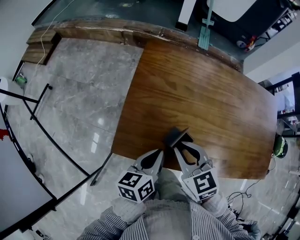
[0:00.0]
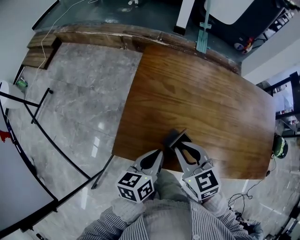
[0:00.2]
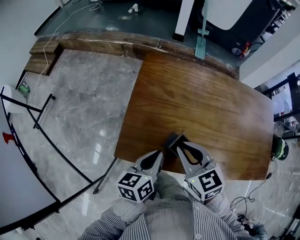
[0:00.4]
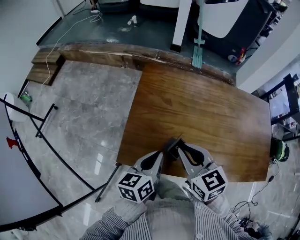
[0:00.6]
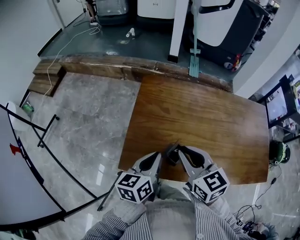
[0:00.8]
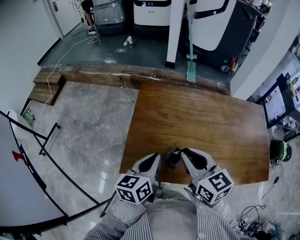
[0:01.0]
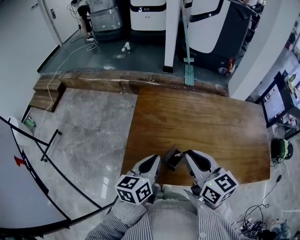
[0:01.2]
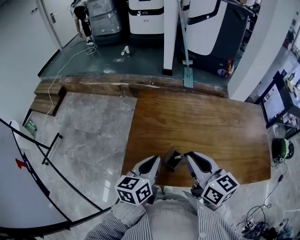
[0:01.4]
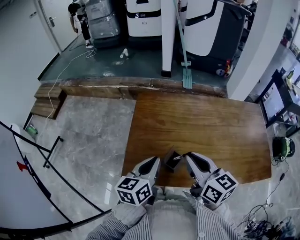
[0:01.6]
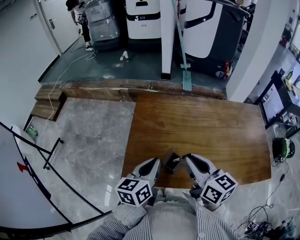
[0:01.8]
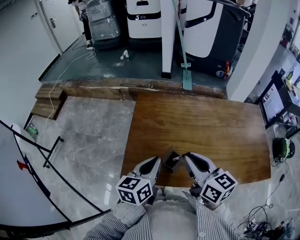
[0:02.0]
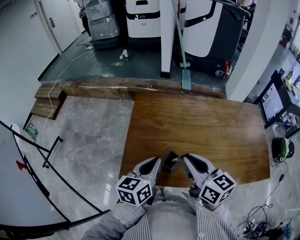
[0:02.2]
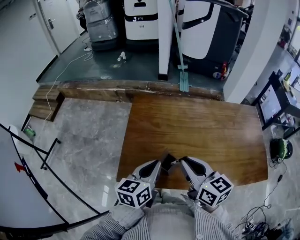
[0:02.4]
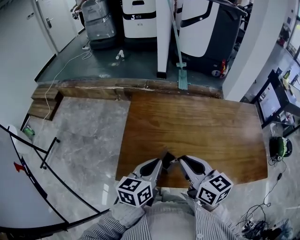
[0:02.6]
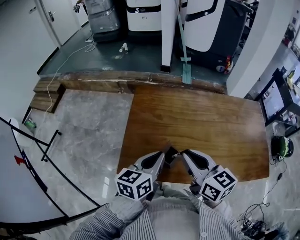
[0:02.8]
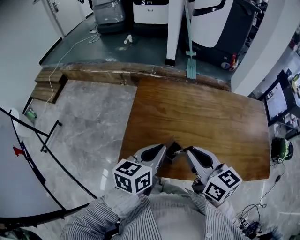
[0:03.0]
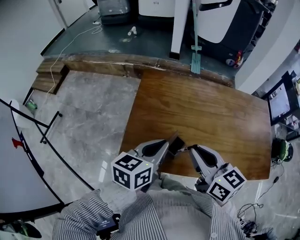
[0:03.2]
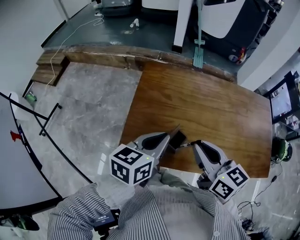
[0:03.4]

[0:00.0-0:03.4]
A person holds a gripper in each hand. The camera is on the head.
0:00.0 to 0:01.6: The right gripper travels upward and to the right by some 15 cm, and swivels approximately 40 degrees; the left gripper shifts about 10 cm upward.
0:01.6 to 0:03.4: The grippers stay close to where they were, moving slightly.

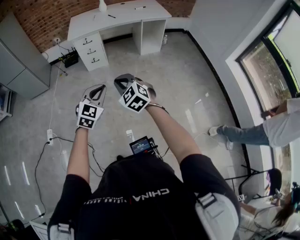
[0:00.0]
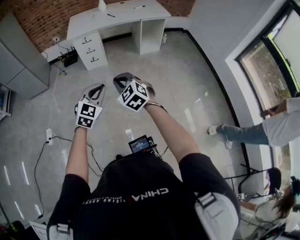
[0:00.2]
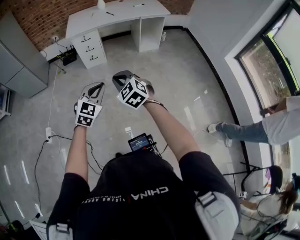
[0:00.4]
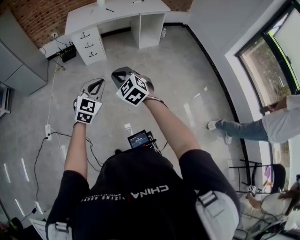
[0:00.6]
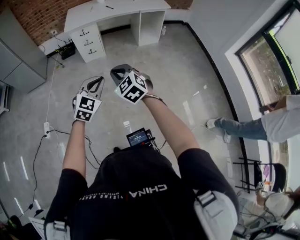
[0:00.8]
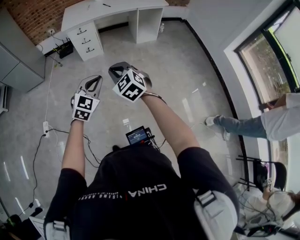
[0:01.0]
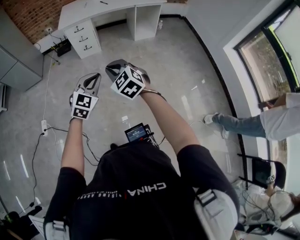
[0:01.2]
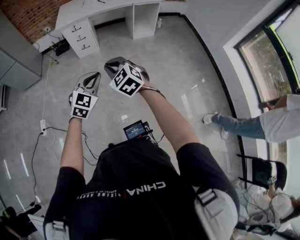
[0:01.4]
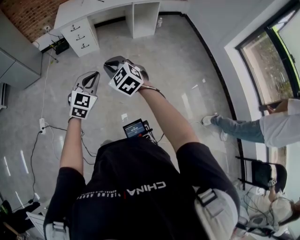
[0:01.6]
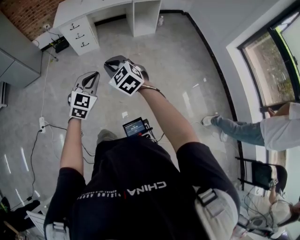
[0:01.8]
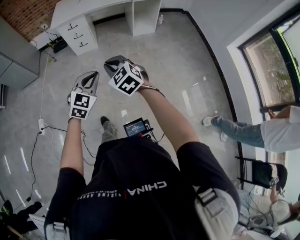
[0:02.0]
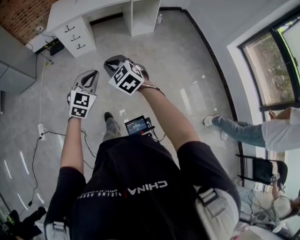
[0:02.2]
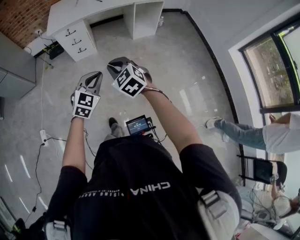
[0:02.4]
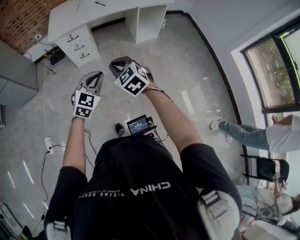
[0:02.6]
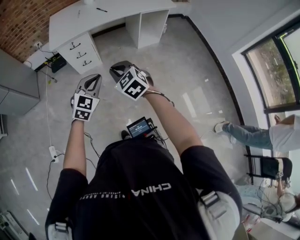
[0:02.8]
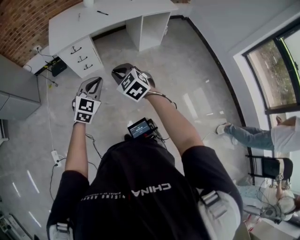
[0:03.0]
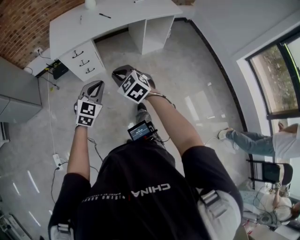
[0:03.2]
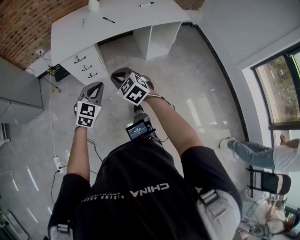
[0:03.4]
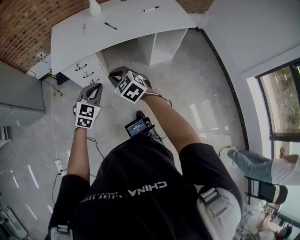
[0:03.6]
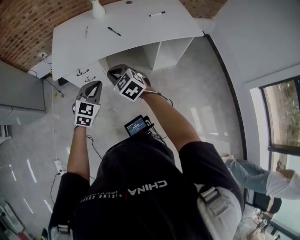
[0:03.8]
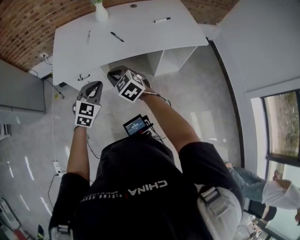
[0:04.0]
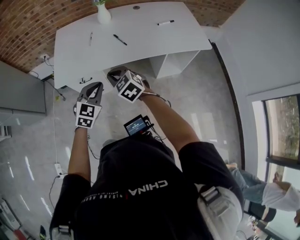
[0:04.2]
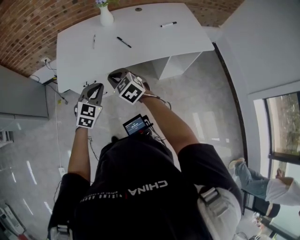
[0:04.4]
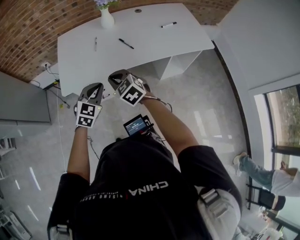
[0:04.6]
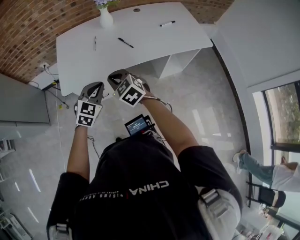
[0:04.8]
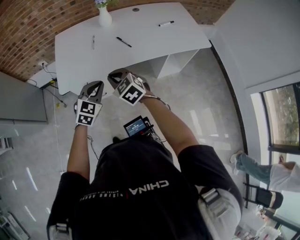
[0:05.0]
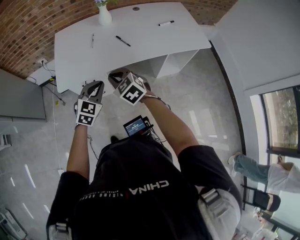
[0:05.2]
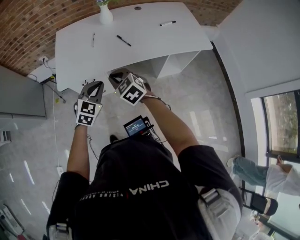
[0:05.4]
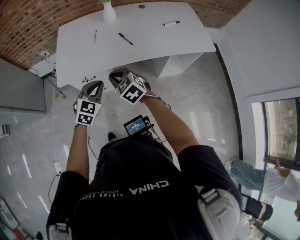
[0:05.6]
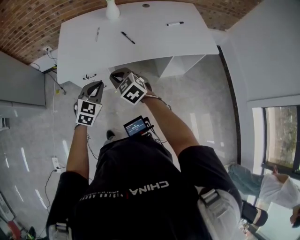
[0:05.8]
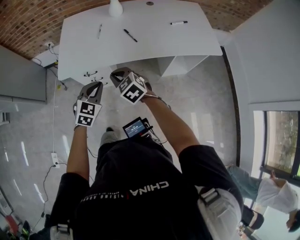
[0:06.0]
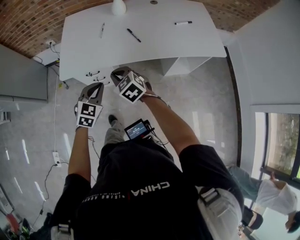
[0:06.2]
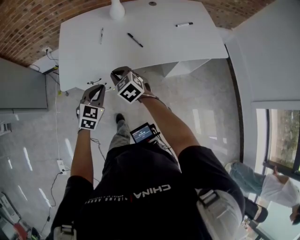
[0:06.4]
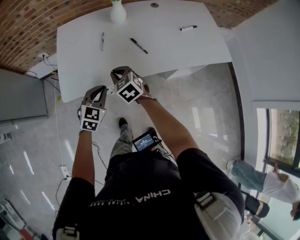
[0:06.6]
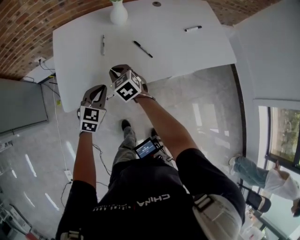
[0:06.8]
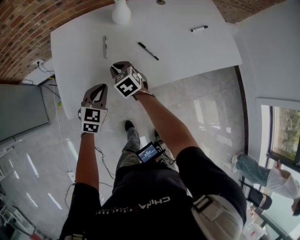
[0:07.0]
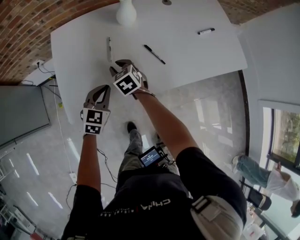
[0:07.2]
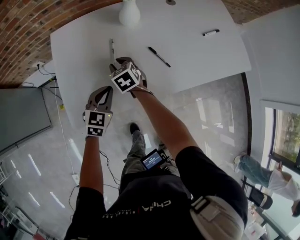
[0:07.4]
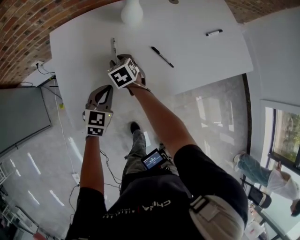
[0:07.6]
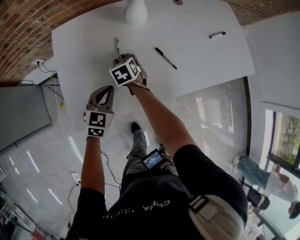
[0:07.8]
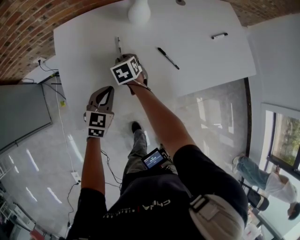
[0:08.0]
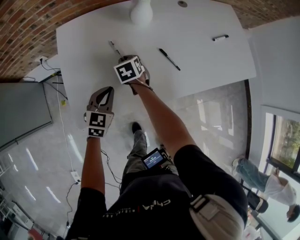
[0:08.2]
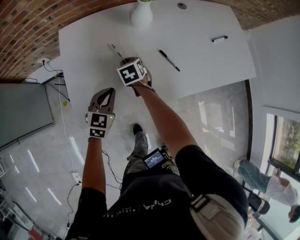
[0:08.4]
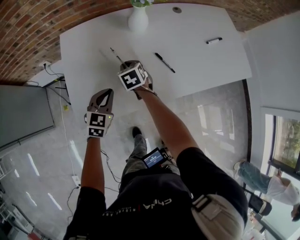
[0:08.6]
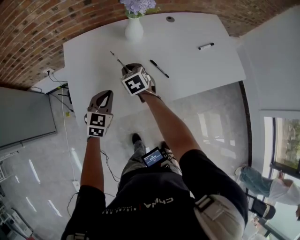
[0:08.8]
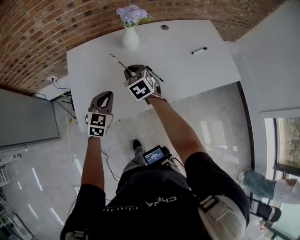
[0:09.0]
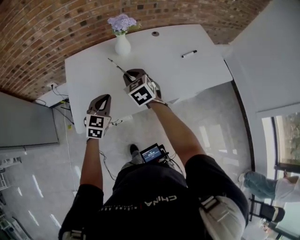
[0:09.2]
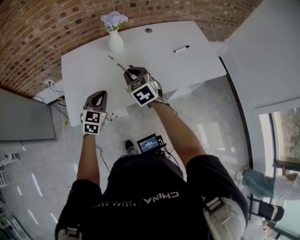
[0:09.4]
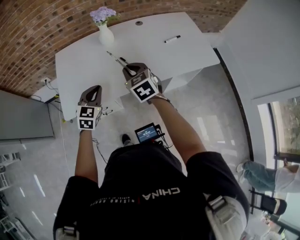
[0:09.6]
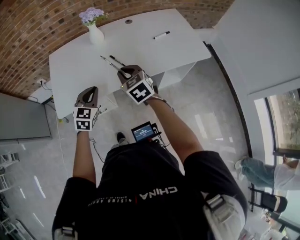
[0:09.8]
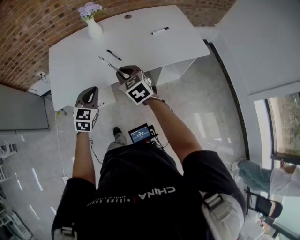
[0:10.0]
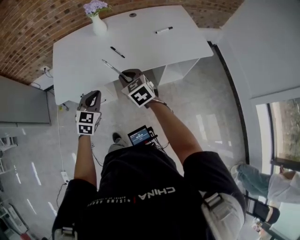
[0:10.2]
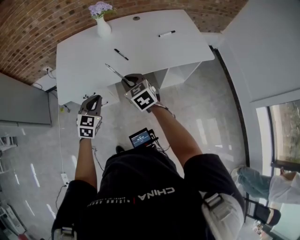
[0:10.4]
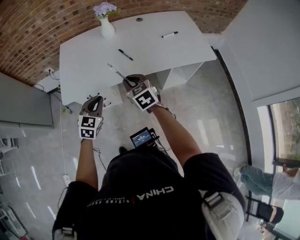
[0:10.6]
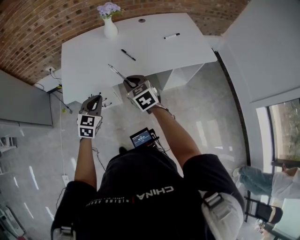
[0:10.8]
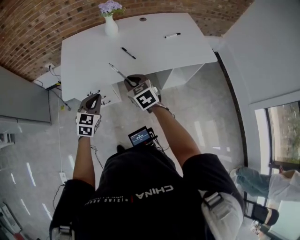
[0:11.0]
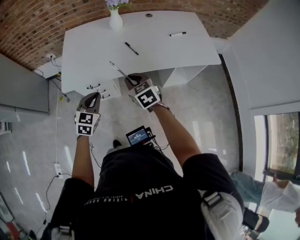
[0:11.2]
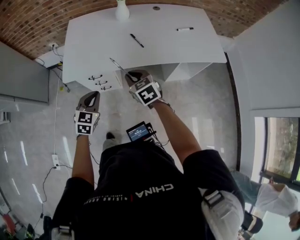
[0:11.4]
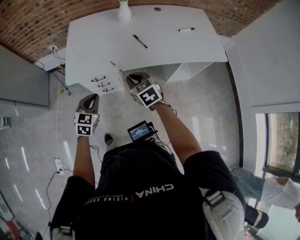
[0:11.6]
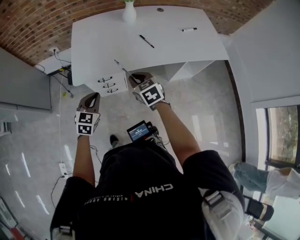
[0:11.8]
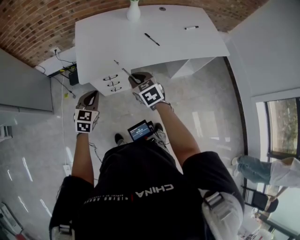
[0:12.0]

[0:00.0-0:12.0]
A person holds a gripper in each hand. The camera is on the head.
0:00.0 to 0:01.6: The two grippers go roughly 10 cm to the right and forward.
0:01.6 to 0:03.0: The right gripper moves forward, roughly 35 cm, while the left gripper shifts about 40 cm forward and to the left.
0:03.0 to 0:04.4: Both grippers are carried forward, roughly 50 cm.
0:04.4 to 0:06.0: There are only small adjustments of the grippers.
0:06.0 to 0:07.6: The left gripper travels forward by roughly 35 cm, while the right gripper travels forward and downward by roughly 50 cm, rotates about 30 degrees, and opens its fingers.
0:07.6 to 0:09.0: The right gripper travels upward and to the right by approximately 20 cm; the left gripper heads upward, covering about 10 cm.
0:09.0 to 0:10.4: Both grippers travel together backward and to the right, roughly 30 cm.
0:10.4 to 0:12.0: Both grippers move to the left, roughly 25 cm.

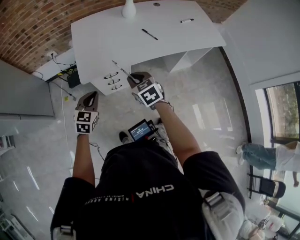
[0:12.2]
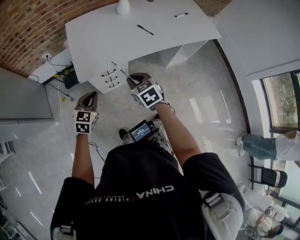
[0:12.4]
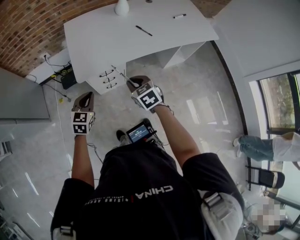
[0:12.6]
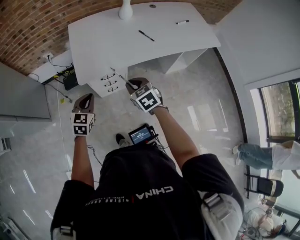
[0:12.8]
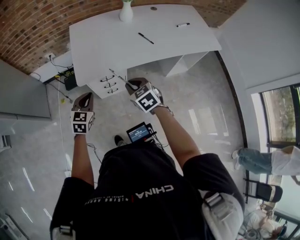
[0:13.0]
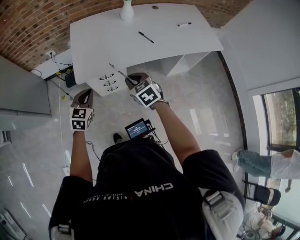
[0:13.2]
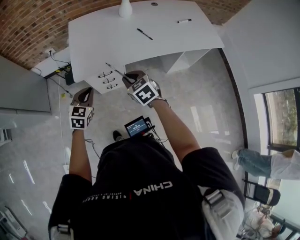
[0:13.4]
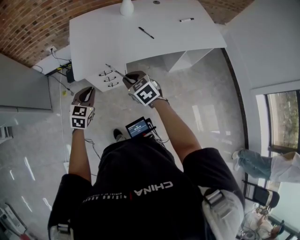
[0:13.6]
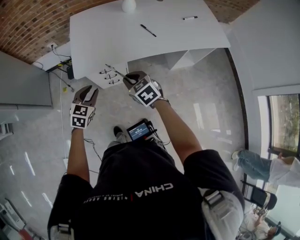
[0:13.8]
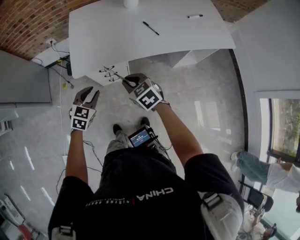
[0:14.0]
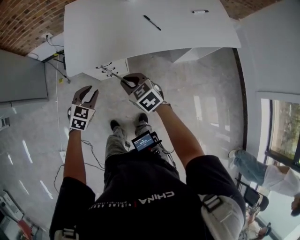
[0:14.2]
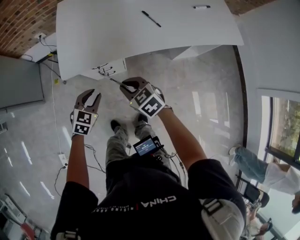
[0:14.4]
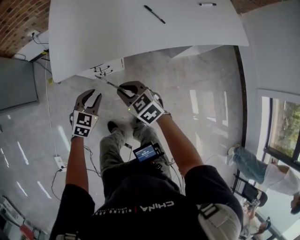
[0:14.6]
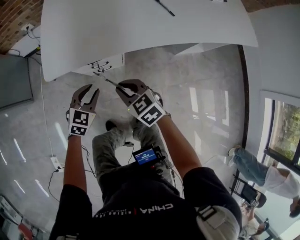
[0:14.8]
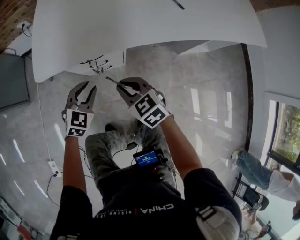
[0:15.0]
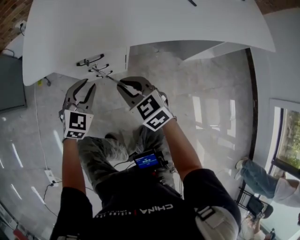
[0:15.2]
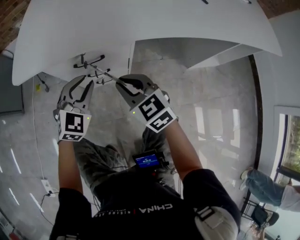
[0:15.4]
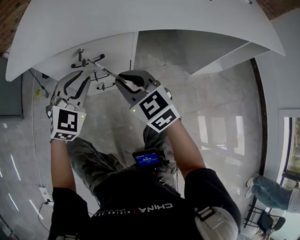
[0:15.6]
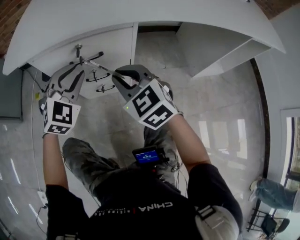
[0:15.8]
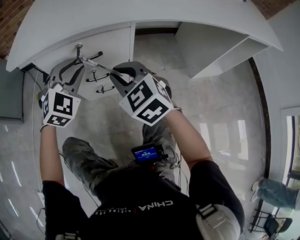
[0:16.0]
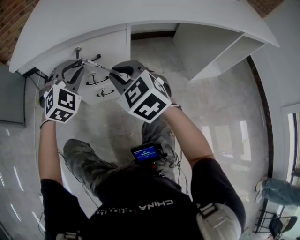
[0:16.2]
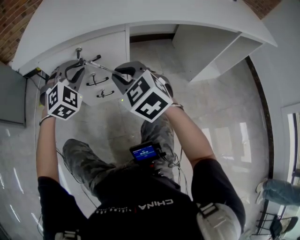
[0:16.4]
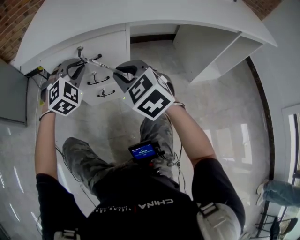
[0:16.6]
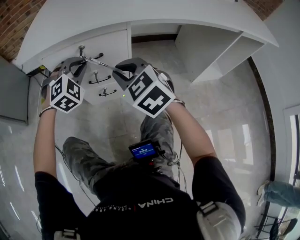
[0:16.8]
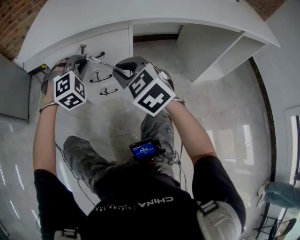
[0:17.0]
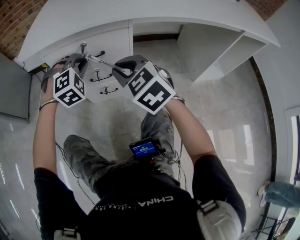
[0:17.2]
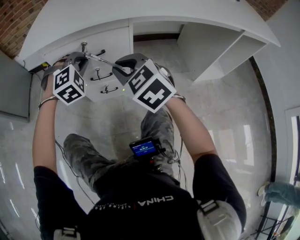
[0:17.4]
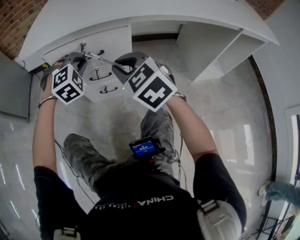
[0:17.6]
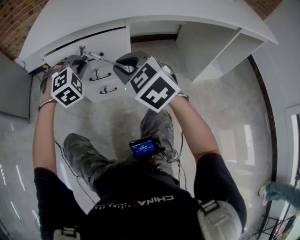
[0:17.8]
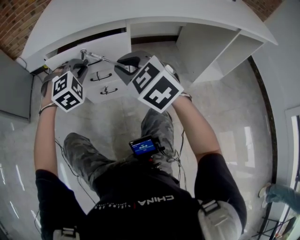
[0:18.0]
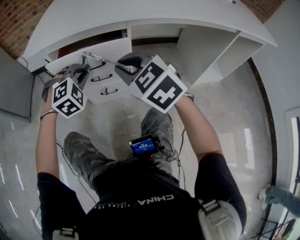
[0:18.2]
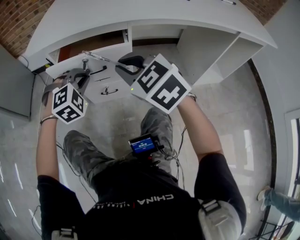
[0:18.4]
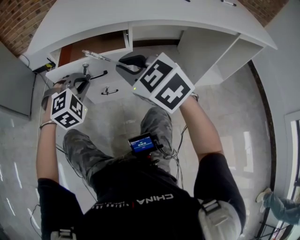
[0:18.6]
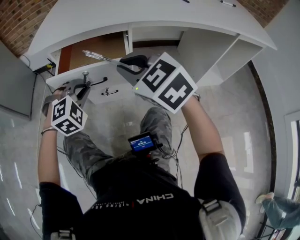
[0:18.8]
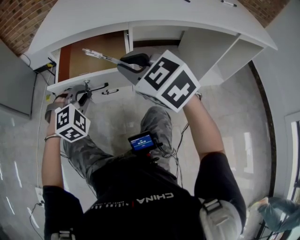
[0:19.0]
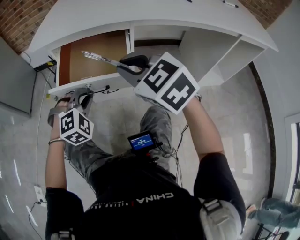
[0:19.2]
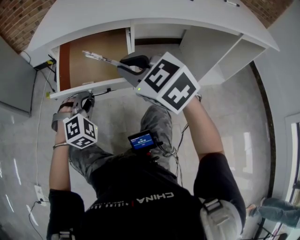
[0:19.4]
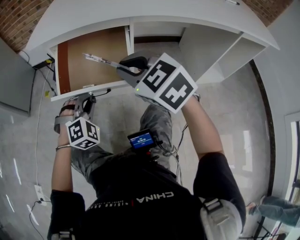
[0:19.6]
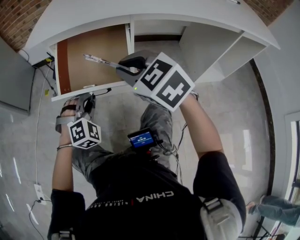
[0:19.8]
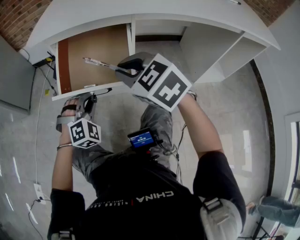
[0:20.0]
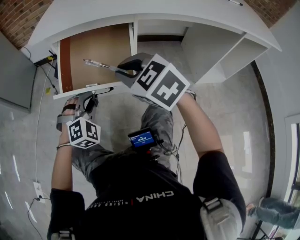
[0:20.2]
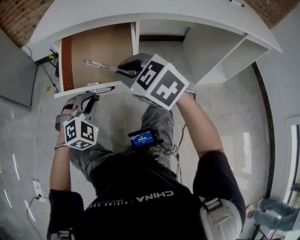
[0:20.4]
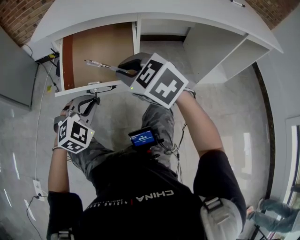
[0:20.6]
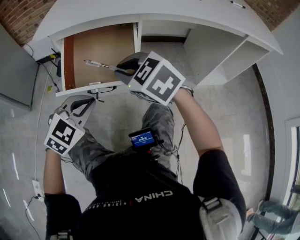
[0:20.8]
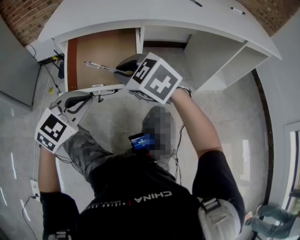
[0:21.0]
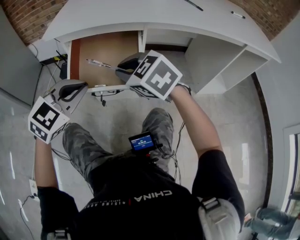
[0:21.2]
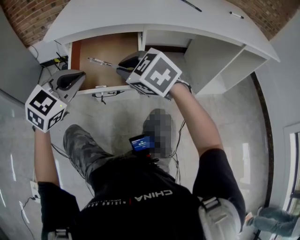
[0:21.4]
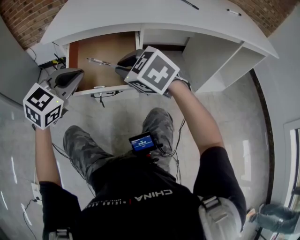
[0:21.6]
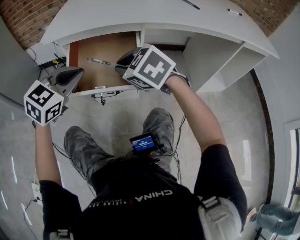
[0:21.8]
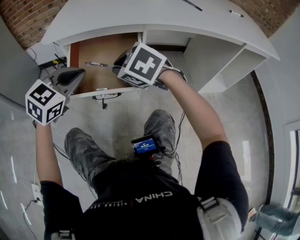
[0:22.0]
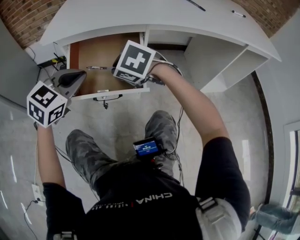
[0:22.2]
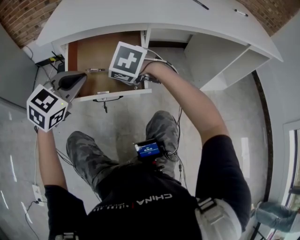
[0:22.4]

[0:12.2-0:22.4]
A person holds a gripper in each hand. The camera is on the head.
0:12.2 to 0:13.6: The left gripper heads to the right, covering roughly 5 cm.
0:13.6 to 0:15.2: Both grippers travel together downward, some 35 cm.
0:15.2 to 0:16.6: The left gripper shifts roughly 10 cm forward, and swivels about 30 degrees.
0:16.6 to 0:18.0: The grippers stay close to where they were, moving slightly.
0:18.0 to 0:19.4: The right gripper changes place by roughly 5 cm. The left gripper is displaced backward by some 10 cm.
0:19.4 to 0:21.0: The right gripper ends up about 5 cm from where it was, while the left gripper shifts approximately 10 cm upward and backward, and turns by roughly 40 degrees.
0:21.0 to 0:22.4: The left gripper goes roughly 10 cm forward; the right gripper is displaced forward and downward by some 10 cm, and turns by roughly 20 degrees.
